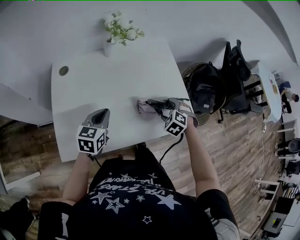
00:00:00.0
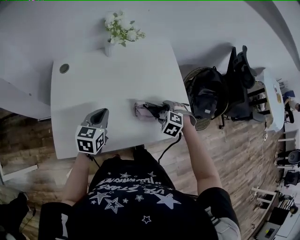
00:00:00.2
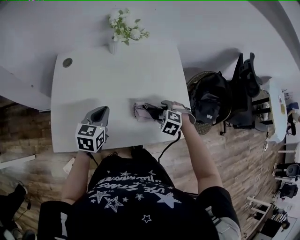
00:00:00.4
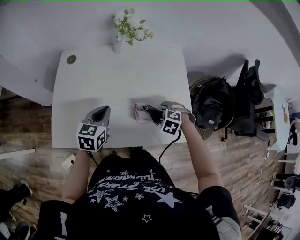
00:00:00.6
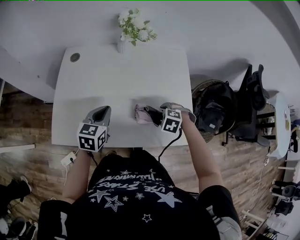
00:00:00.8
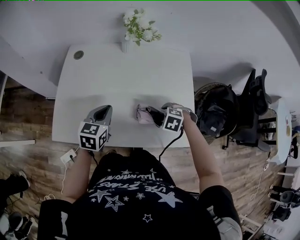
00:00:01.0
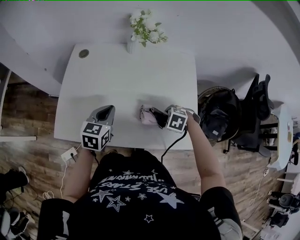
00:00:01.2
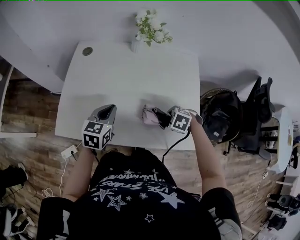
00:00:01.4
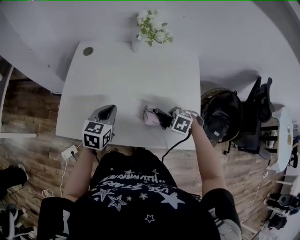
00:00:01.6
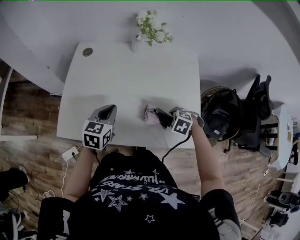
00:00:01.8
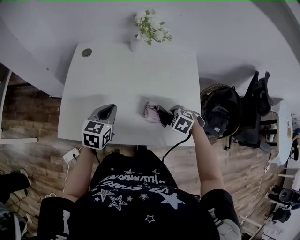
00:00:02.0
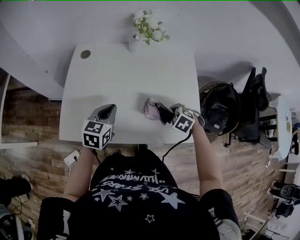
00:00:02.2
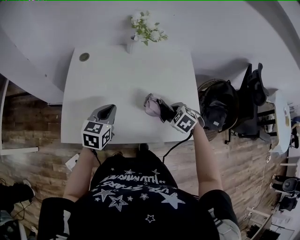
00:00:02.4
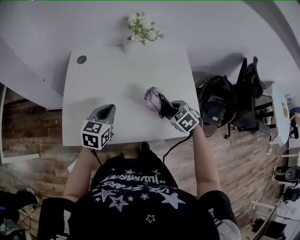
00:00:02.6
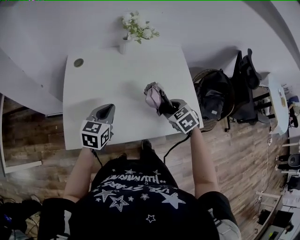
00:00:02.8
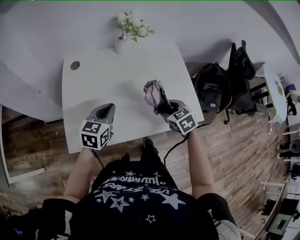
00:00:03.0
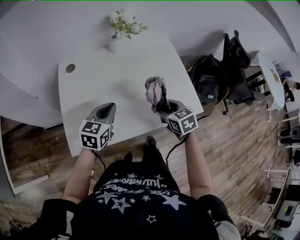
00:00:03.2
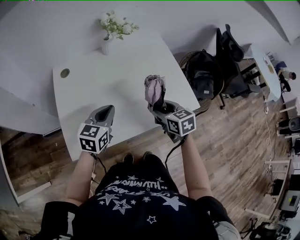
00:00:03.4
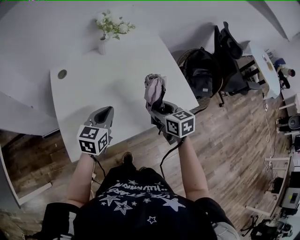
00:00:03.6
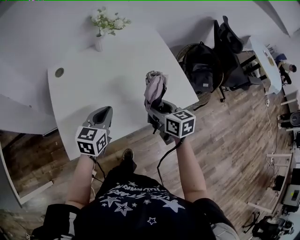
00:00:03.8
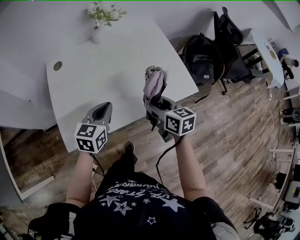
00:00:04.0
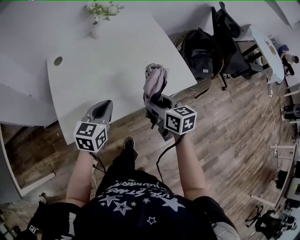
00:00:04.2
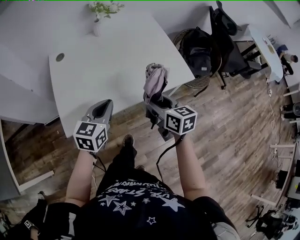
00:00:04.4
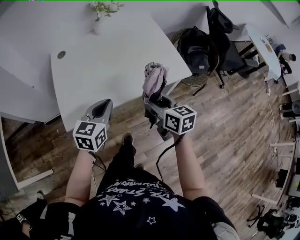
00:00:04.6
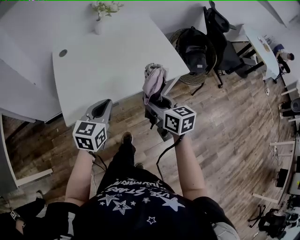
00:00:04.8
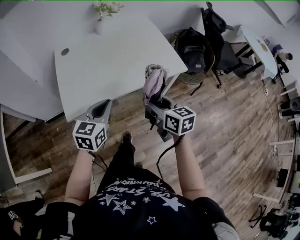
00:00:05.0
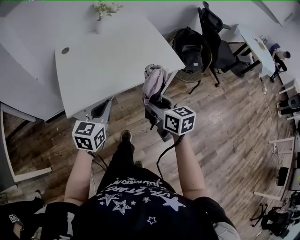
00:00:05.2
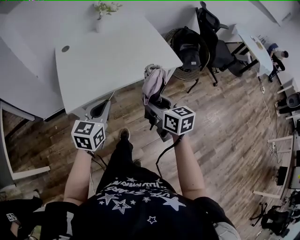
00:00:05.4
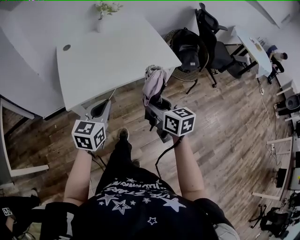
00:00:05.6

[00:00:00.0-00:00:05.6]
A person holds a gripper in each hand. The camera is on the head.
00:00:00.0 to 00:00:01.4: The right gripper turns by about 40 degrees, and closes its fingers.
00:00:01.4 to 00:00:02.8: The right gripper is displaced upward by about 10 cm, and changes its angle by about 50 degrees.
00:00:02.8 to 00:00:04.2: Both grippers move backward, some 15 cm. The right gripper twists some 50 degrees clockwise, seen from behind.
00:00:04.2 to 00:00:05.6: Both grippers travel together backward, approximately 20 cm.

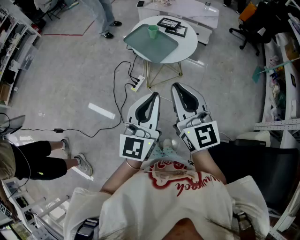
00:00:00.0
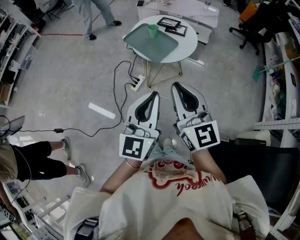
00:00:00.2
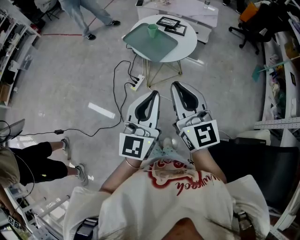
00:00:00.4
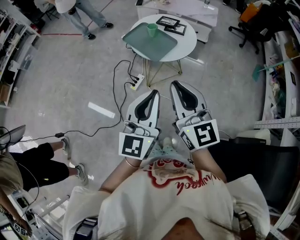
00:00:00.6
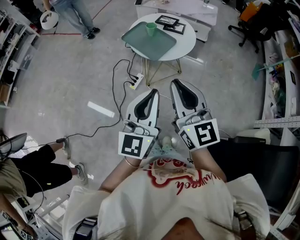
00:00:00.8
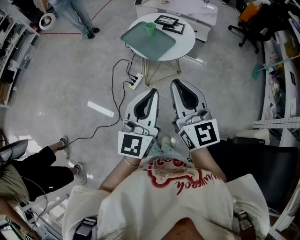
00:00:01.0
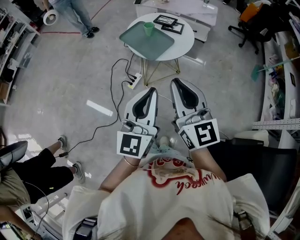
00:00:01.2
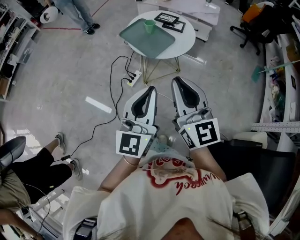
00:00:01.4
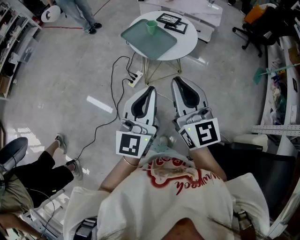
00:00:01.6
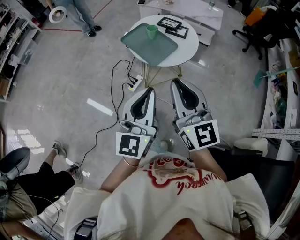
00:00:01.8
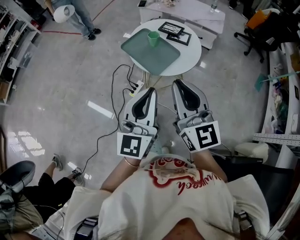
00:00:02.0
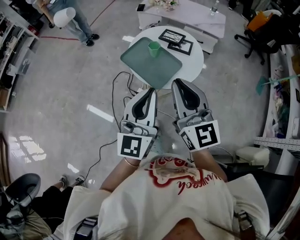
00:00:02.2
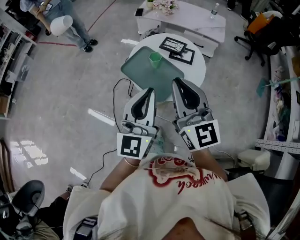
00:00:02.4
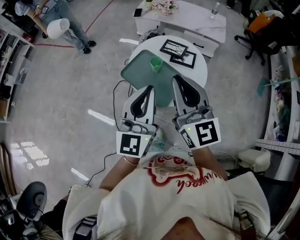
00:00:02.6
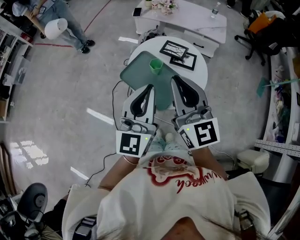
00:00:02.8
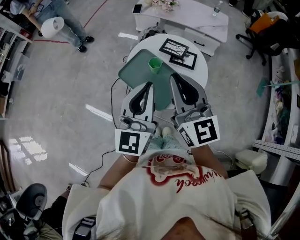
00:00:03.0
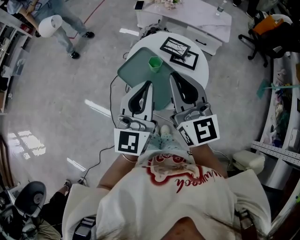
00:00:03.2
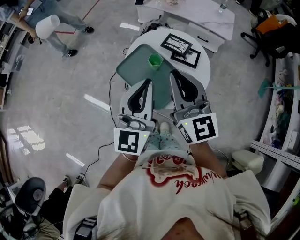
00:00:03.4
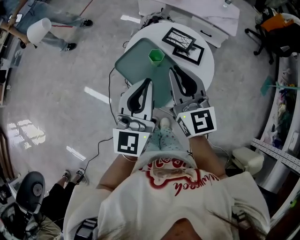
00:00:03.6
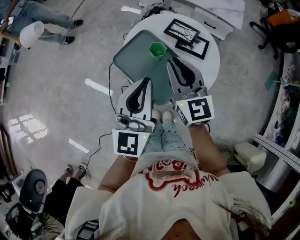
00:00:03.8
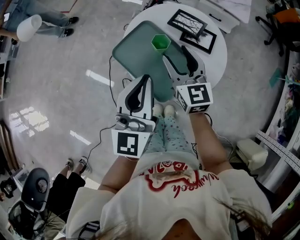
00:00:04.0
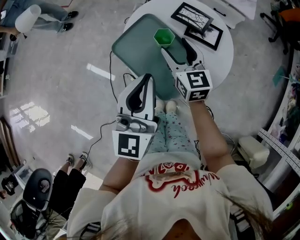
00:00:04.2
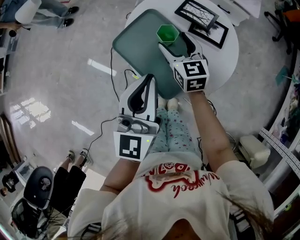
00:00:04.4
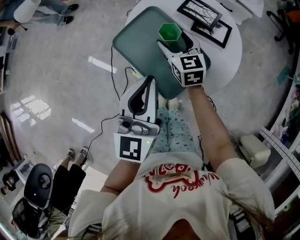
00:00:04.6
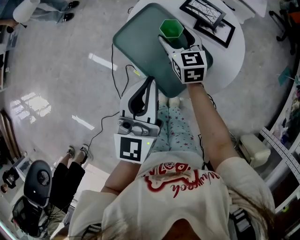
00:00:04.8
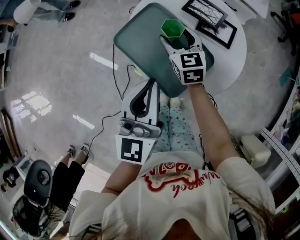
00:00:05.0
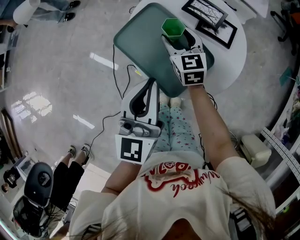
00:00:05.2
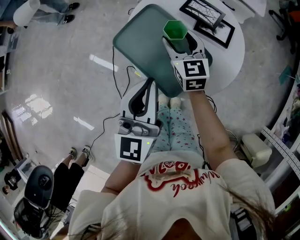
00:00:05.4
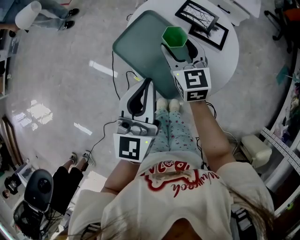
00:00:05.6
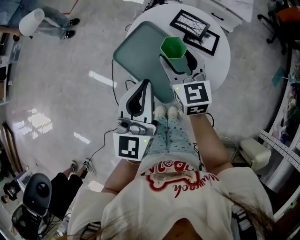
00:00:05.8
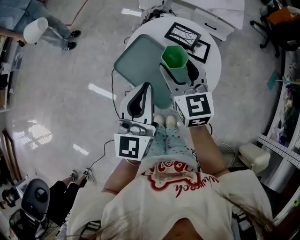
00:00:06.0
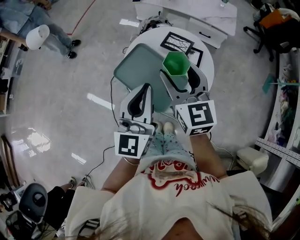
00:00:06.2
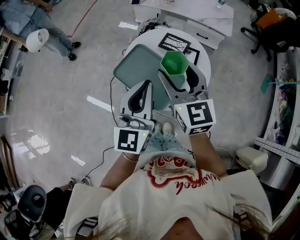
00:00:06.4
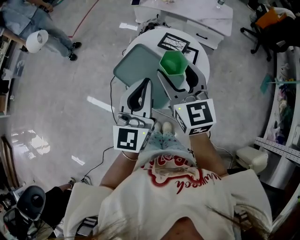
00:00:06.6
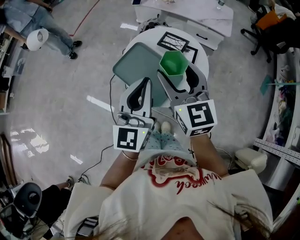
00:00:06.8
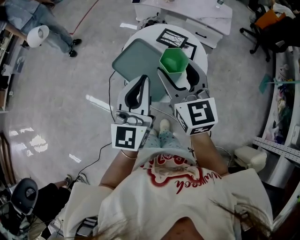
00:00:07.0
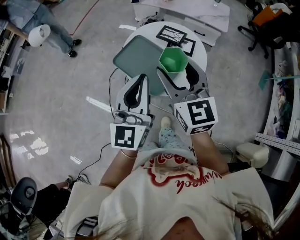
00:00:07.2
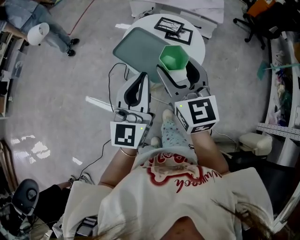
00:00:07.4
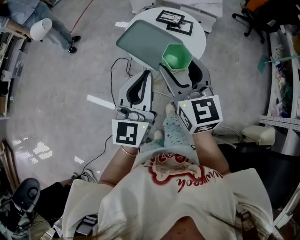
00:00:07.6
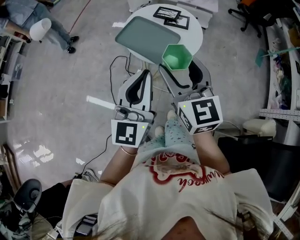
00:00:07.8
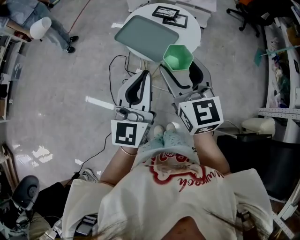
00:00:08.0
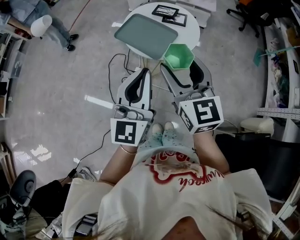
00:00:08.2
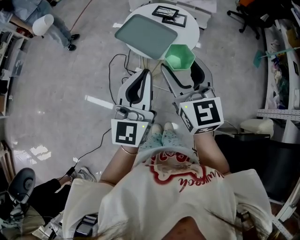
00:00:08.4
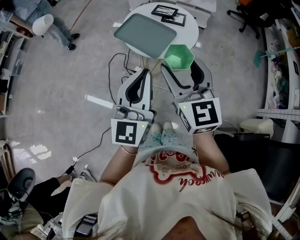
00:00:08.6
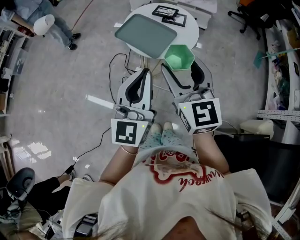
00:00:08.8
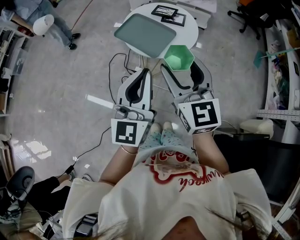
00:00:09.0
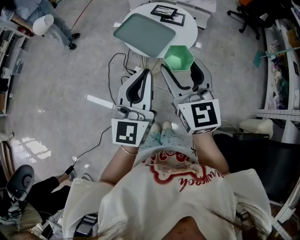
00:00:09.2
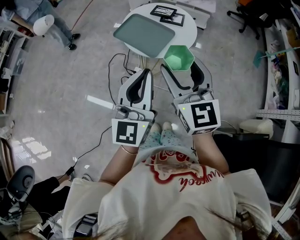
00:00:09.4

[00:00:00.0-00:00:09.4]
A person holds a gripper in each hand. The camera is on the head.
00:00:00.0 to 00:00:01.6: The grippers make only small movements.
00:00:01.6 to 00:00:03.2: Both grippers travel together forward, some 35 cm.
00:00:03.2 to 00:00:04.8: The left gripper is displaced downward by about 15 cm. The right gripper travels downward and forward by roughly 35 cm, angles its fingers downward, by about 30 degrees, and opens.
00:00:04.8 to 00:00:06.2: The right gripper is displaced upward by approximately 25 cm; the left gripper shifts some 10 cm upward.
00:00:06.2 to 00:00:07.8: Both grippers travel together backward, about 25 cm.
00:00:07.8 to 00:00:09.4: The two grippers go about 5 cm backward.

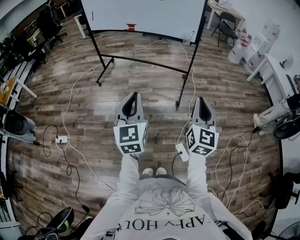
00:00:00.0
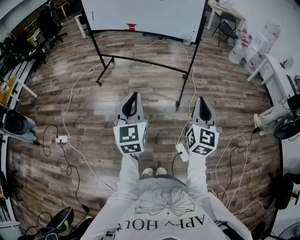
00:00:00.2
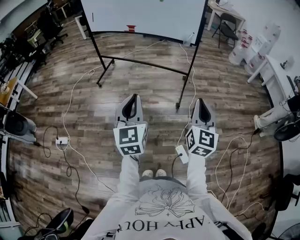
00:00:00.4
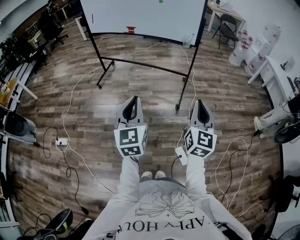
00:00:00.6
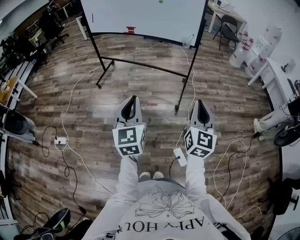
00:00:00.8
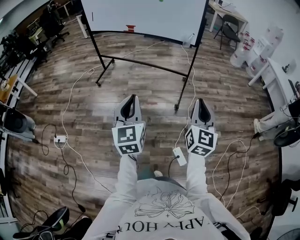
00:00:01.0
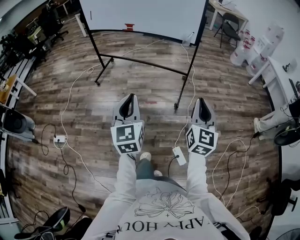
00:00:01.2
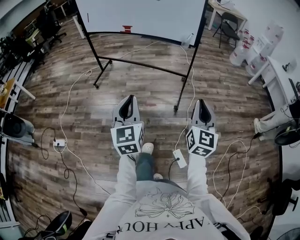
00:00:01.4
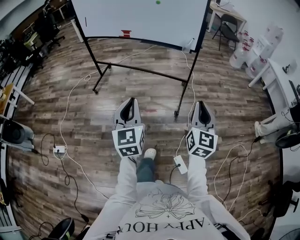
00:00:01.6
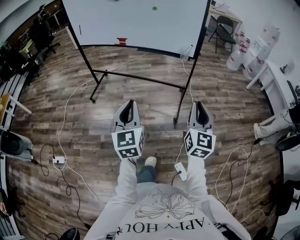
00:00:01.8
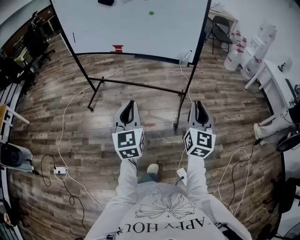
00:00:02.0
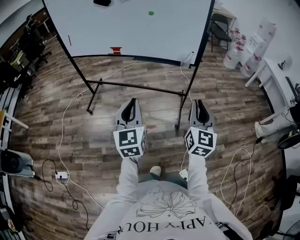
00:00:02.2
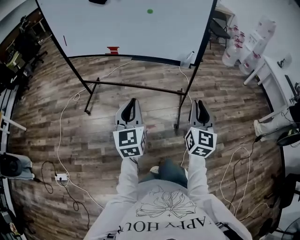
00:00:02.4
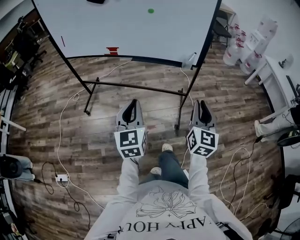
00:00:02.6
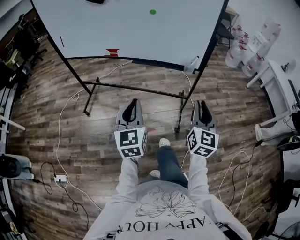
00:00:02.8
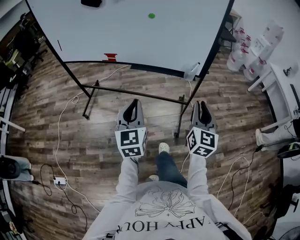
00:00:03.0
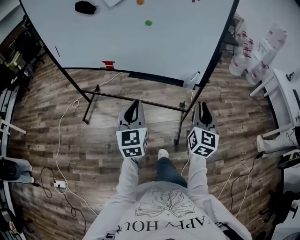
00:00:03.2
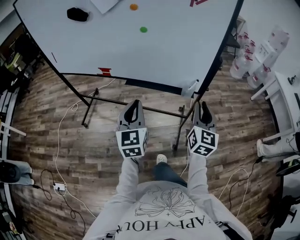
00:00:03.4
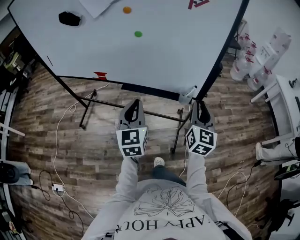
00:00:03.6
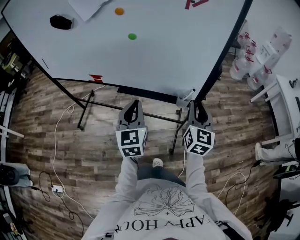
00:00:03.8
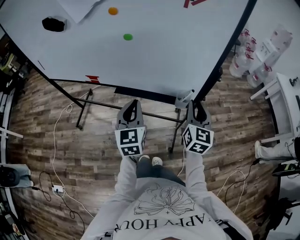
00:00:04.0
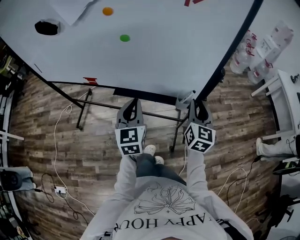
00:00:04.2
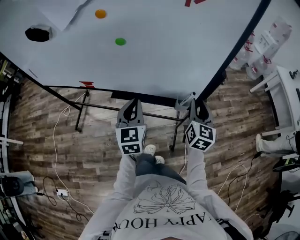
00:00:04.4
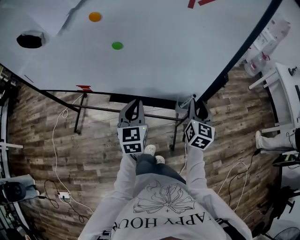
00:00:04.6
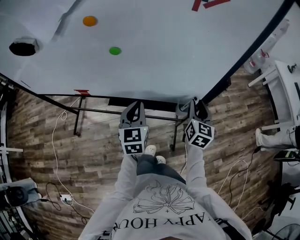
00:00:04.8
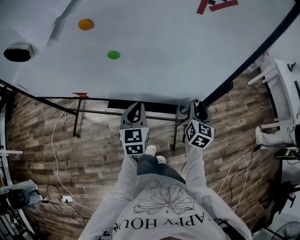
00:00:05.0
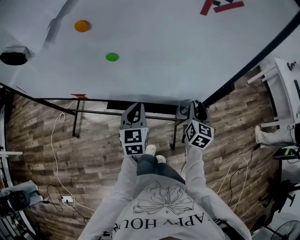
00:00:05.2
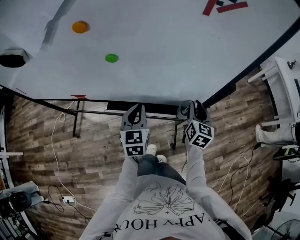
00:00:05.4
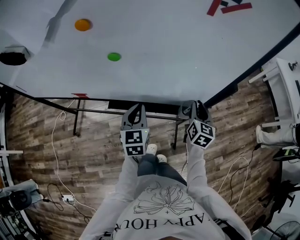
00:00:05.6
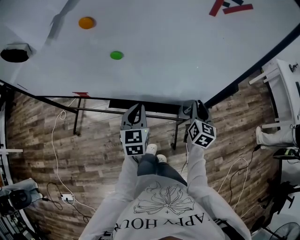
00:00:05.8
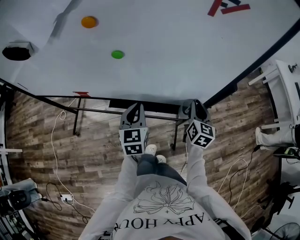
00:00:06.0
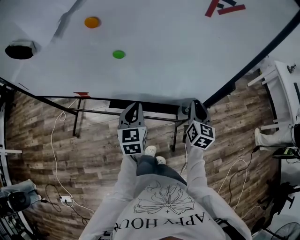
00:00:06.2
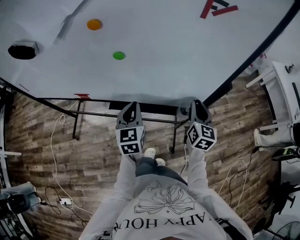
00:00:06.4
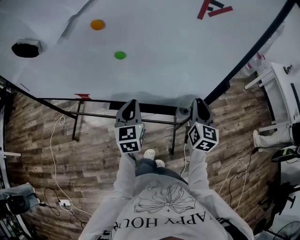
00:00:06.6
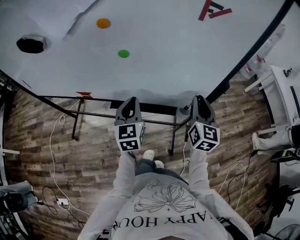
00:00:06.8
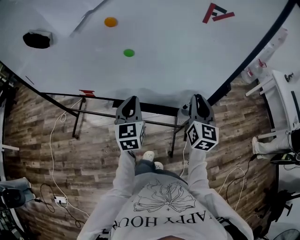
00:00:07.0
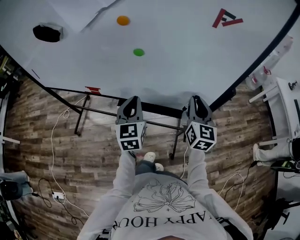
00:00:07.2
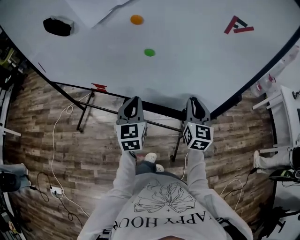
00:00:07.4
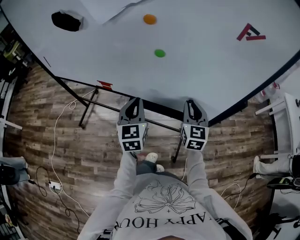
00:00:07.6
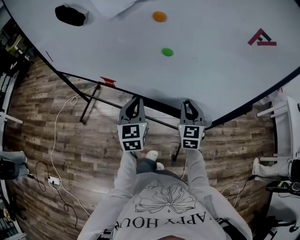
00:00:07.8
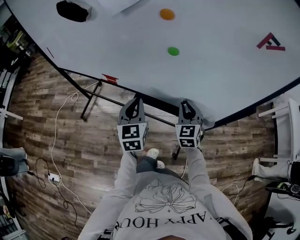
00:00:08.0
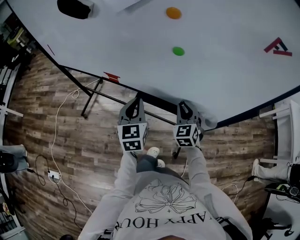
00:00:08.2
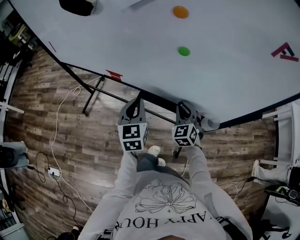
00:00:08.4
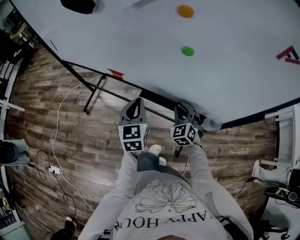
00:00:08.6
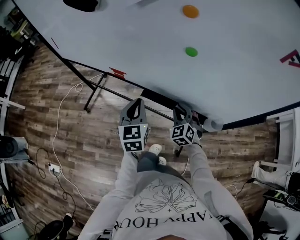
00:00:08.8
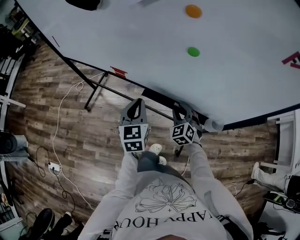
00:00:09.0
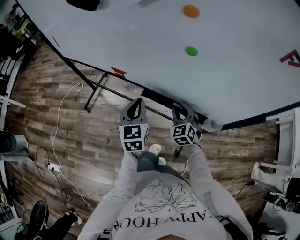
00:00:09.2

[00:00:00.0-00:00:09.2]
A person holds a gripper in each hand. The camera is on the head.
00:00:00.0 to 00:00:01.6: Both grippers move forward, approximately 15 cm.
00:00:01.6 to 00:00:03.0: The two grippers go approximately 35 cm forward.
00:00:03.0 to 00:00:04.6: Both grippers move forward, roughly 35 cm.
00:00:04.6 to 00:00:06.2: The left gripper ends up about 5 cm from where it was.
00:00:06.2 to 00:00:07.6: Both grippers travel together to the left and upward, approximately 10 cm. The right gripper swivels roughly 30 degrees.
00:00:07.6 to 00:00:09.2: The left gripper travels to the left and downward by about 10 cm. The right gripper is displaced downward and to the left by roughly 20 cm, and rotates approximately 40 degrees.
